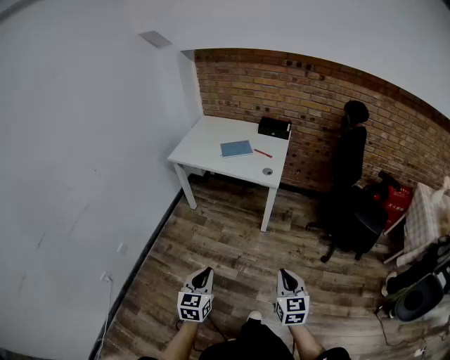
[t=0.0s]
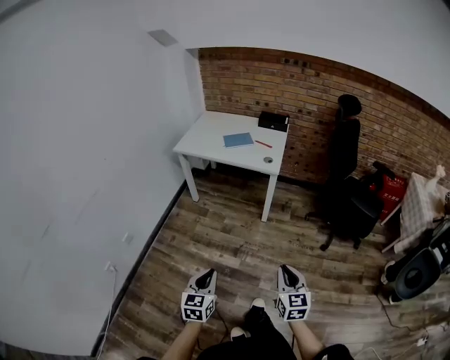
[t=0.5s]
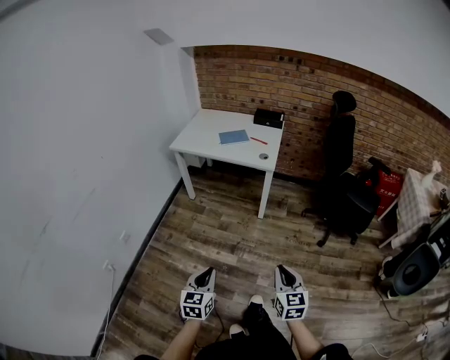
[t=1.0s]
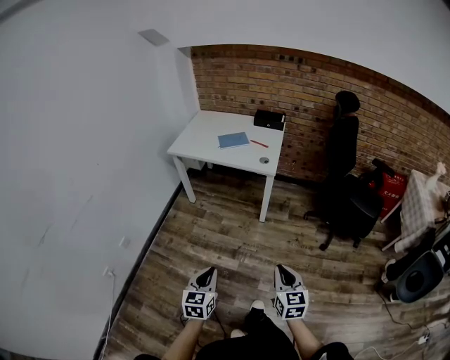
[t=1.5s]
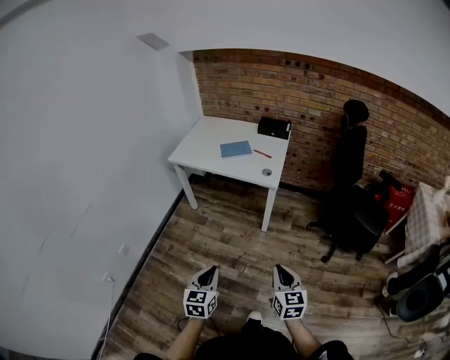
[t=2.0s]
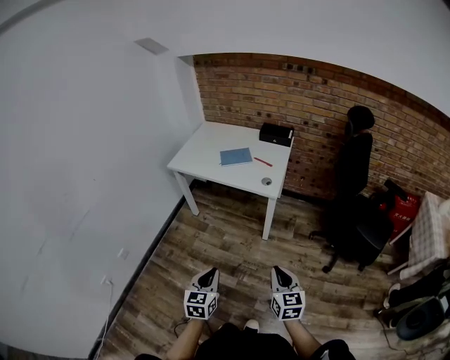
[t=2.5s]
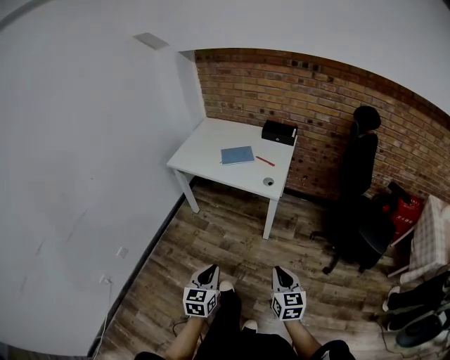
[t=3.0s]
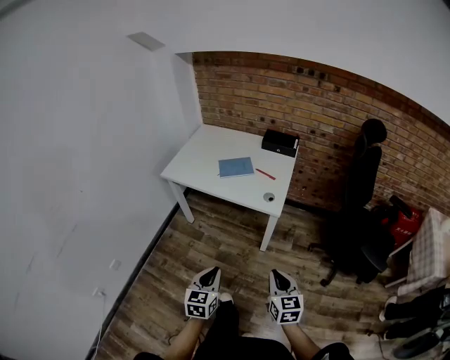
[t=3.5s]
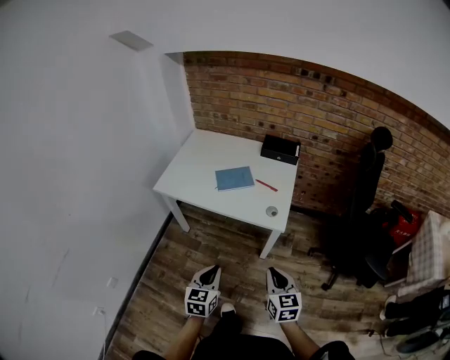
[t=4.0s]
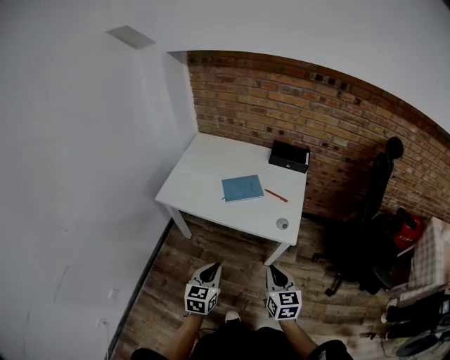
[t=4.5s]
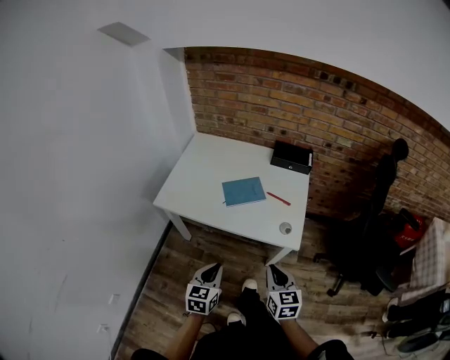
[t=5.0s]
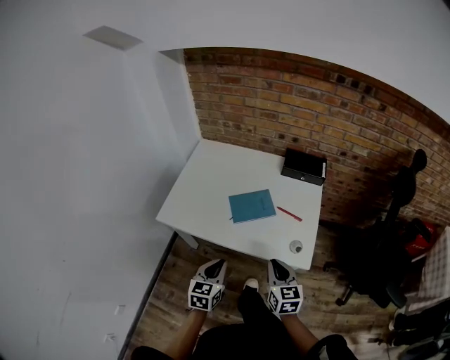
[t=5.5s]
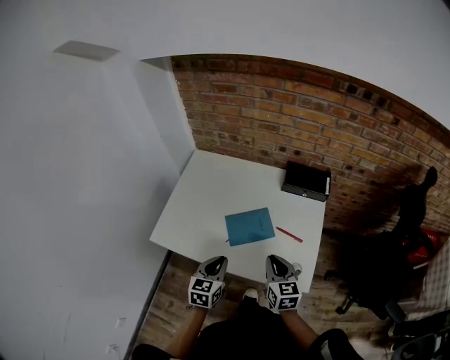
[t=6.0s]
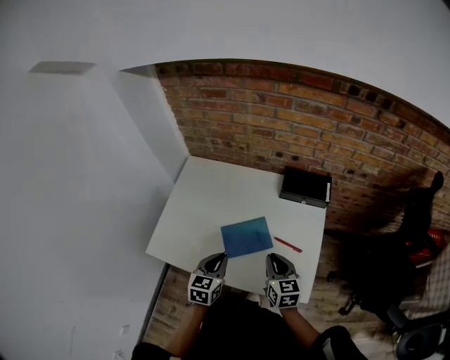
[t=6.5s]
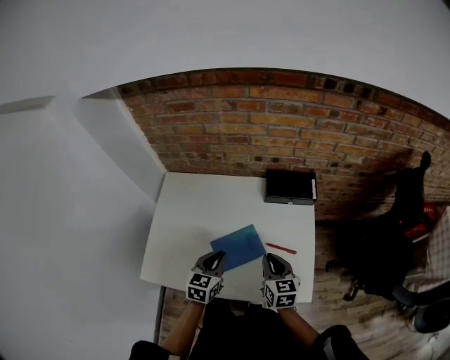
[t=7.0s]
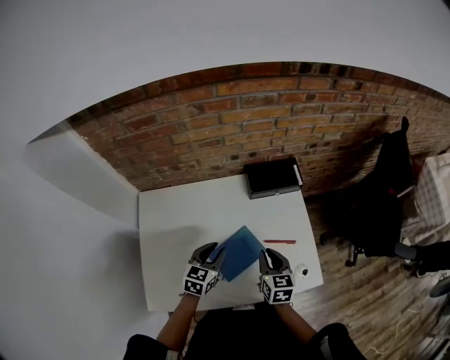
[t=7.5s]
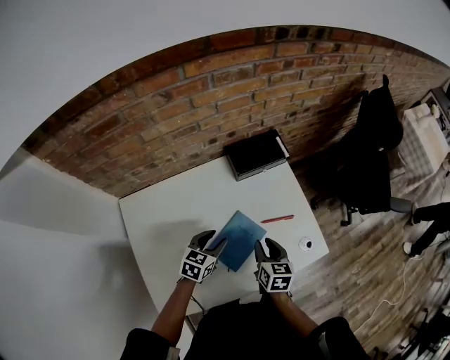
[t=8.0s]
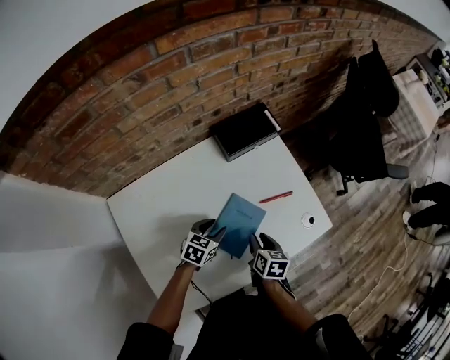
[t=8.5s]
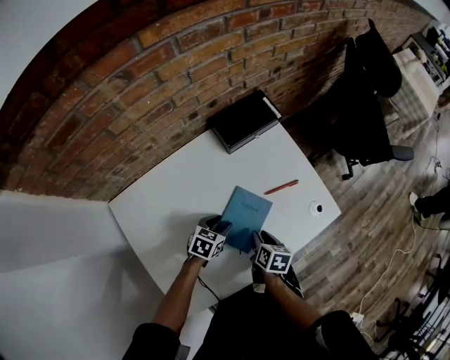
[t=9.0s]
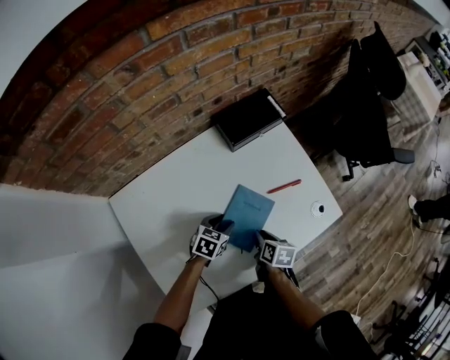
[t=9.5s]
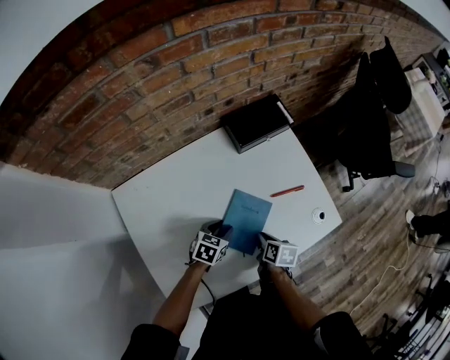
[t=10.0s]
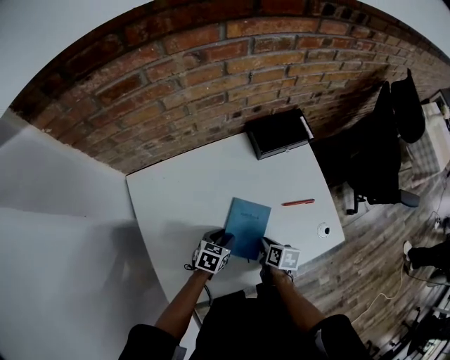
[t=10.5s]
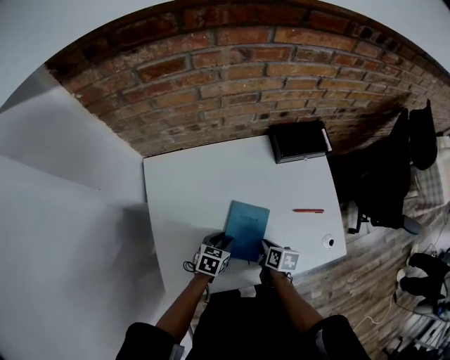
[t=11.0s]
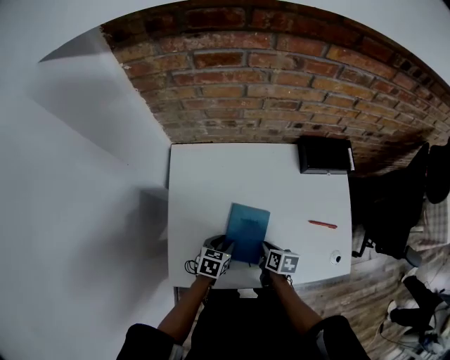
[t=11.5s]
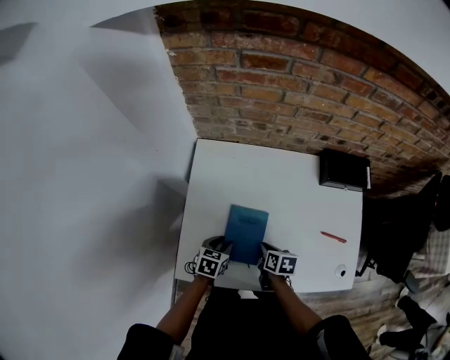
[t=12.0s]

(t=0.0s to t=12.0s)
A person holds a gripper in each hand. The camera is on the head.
t=0.0s - t=2.0s: The left gripper travels backward and back again, roughly 10 cm each way; the right gripper moves roughly 10 cm backward and comes back.
t=2.0s - t=4.0s: Both grippers move forward, about 30 cm.
t=4.0s - t=6.0s: The two grippers go approximately 40 cm forward.
t=6.0s - t=8.0s: The right gripper moves roughly 15 cm, changes its angle by about 50 degrees, and opens up. The left gripper shifts by roughly 25 cm, changes its angle by approximately 50 degrees, and opens.
t=8.0s - t=10.0s: The right gripper is displaced downward and backward by roughly 15 cm, and turns by approximately 30 degrees. Meanwhile the left gripper goes approximately 10 cm downward.
t=10.0s - t=12.0s: The right gripper shifts by roughly 15 cm, and changes its angle by some 40 degrees; the left gripper moves approximately 20 cm, and changes its angle by some 40 degrees.

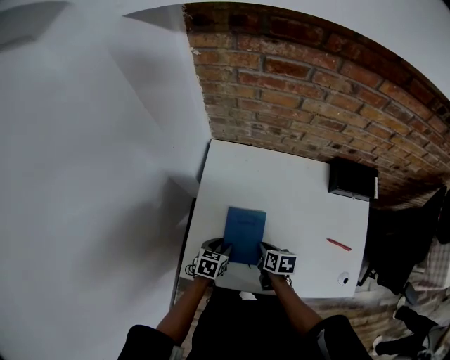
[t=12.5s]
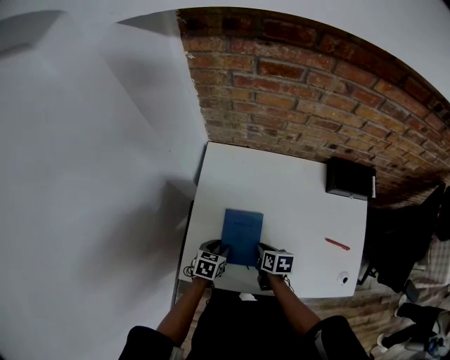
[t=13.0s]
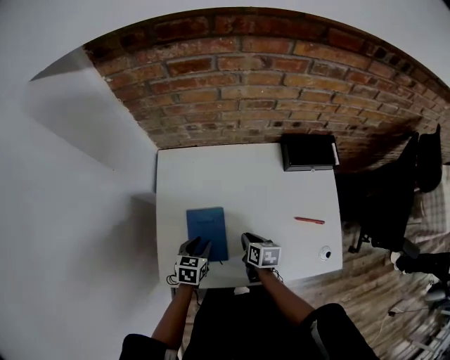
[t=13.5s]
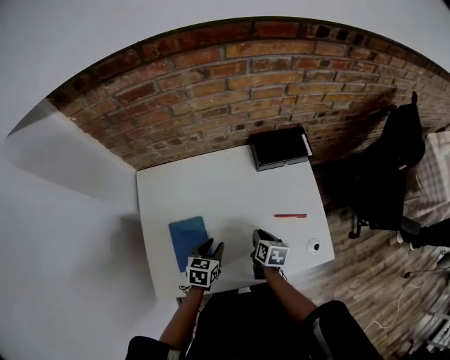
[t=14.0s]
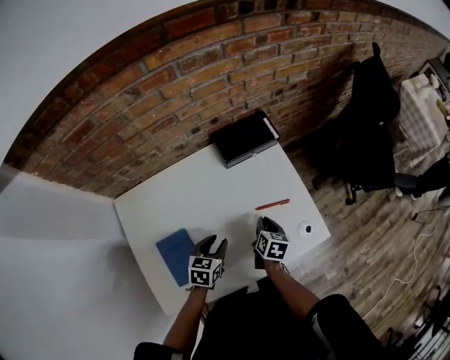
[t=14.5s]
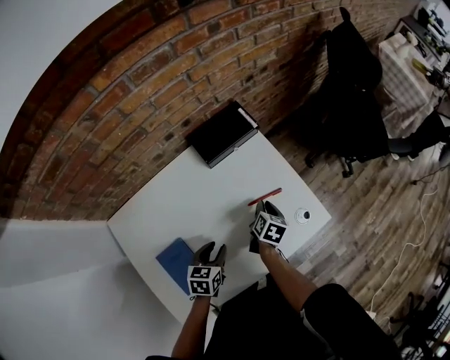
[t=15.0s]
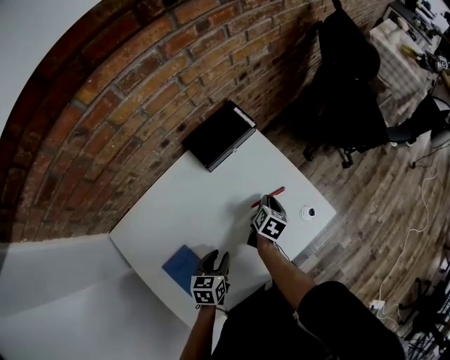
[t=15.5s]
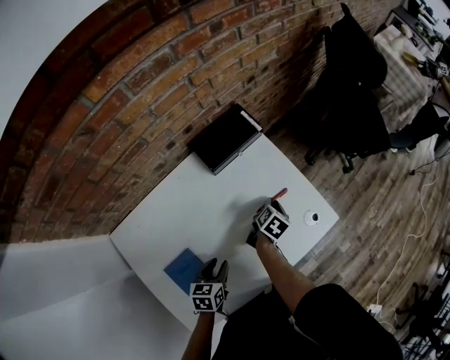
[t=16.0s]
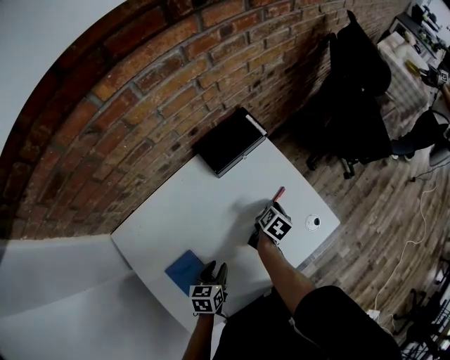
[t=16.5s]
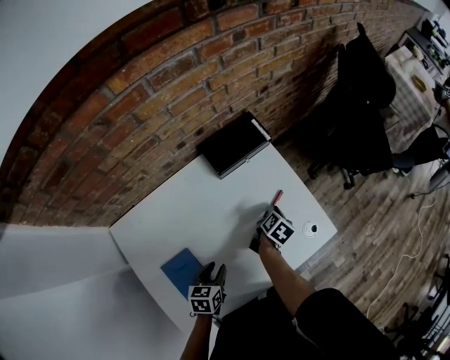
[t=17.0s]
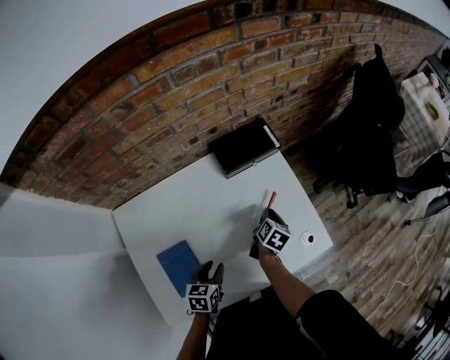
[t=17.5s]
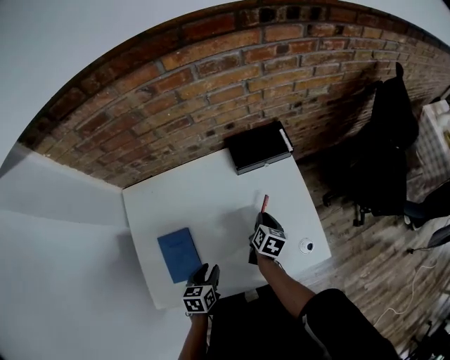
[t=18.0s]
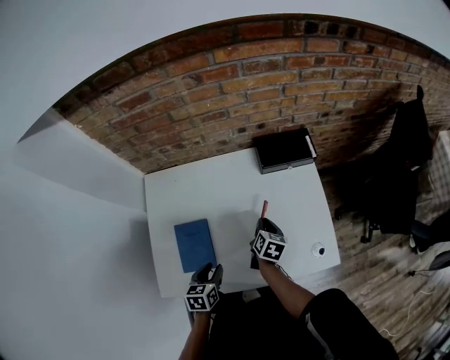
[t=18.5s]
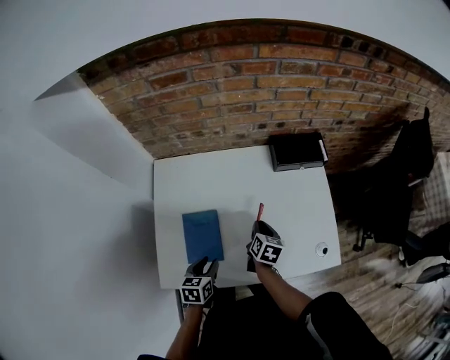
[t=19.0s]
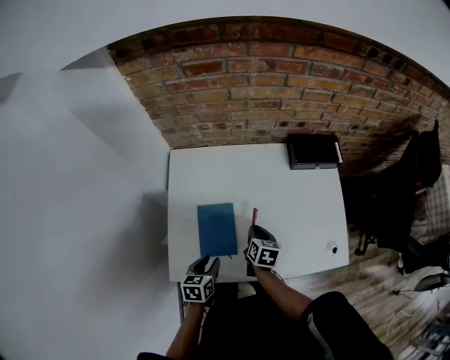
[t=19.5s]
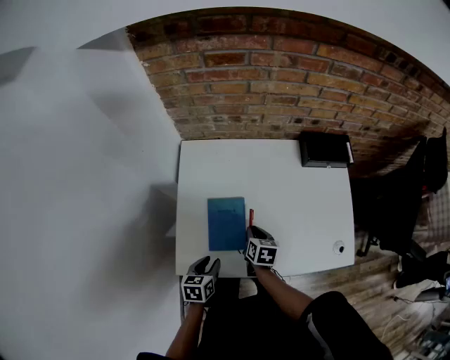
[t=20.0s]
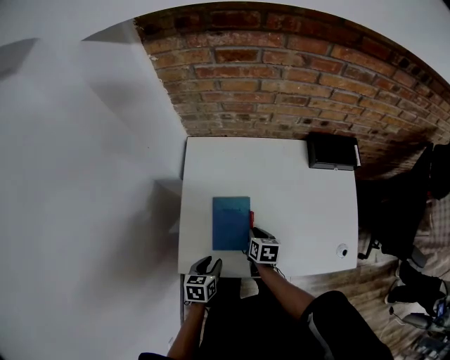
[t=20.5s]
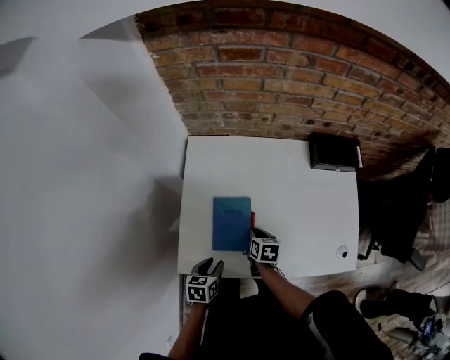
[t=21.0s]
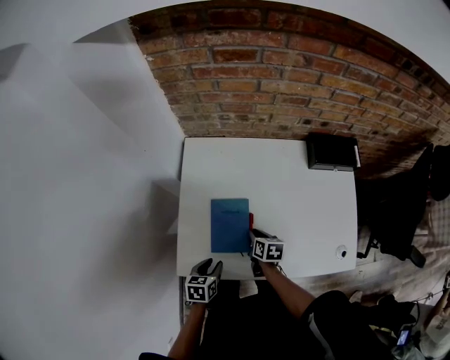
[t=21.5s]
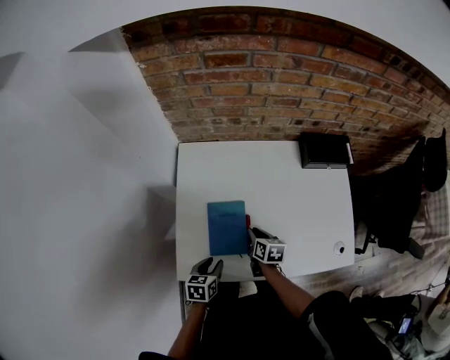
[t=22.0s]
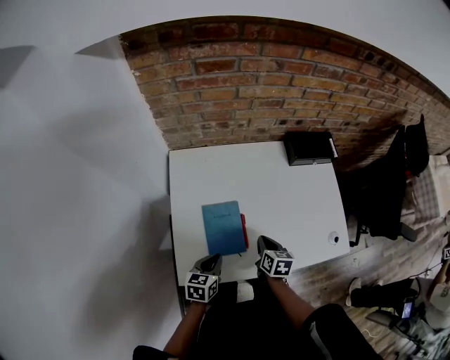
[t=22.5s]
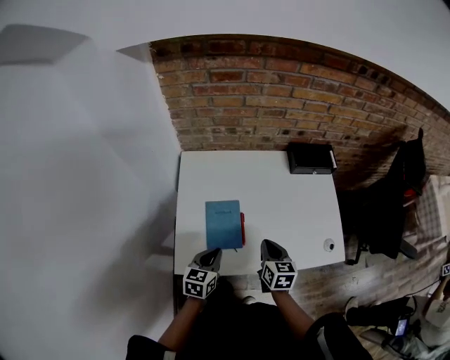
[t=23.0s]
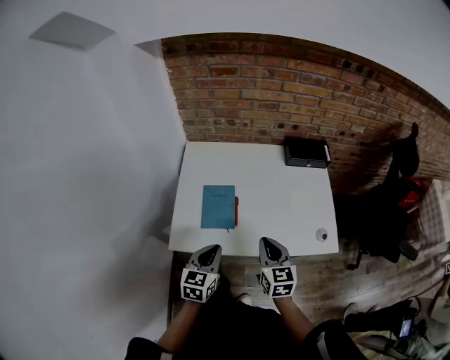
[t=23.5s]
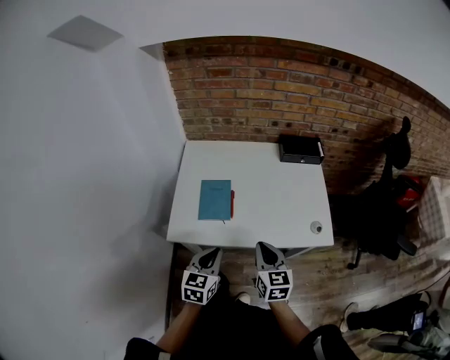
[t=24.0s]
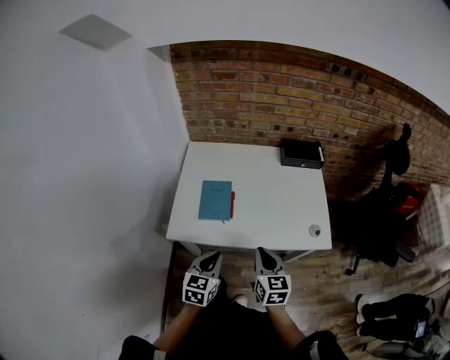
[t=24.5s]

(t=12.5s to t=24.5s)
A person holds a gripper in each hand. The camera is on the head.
t=12.5s - t=14.5s: The left gripper ends up approximately 25 cm from where it was, and turns by roughly 30 degrees. The right gripper ends up about 30 cm from where it was, and turns by about 50 degrees.
t=14.5s - t=16.5s: The left gripper ends up roughly 5 cm from where it was; the right gripper travels forward by approximately 10 cm, and swivels about 40 degrees.
t=16.5s - t=18.5s: The right gripper changes place by approximately 15 cm, and swivels roughly 50 degrees; the left gripper changes place by about 10 cm, and swivels about 30 degrees.
t=18.5s - t=20.5s: Both grippers travel together to the left and backward, approximately 20 cm. The right gripper changes its angle by about 30 degrees.
t=20.5s - t=22.5s: The left gripper shifts by some 5 cm, and closes its fingers, while the right gripper shifts roughly 5 cm to the right.
t=22.5s - t=24.5s: The left gripper is displaced backward, upward and to the right by about 25 cm, and rotates some 20 degrees; the right gripper goes some 25 cm backward and upward, and rotates about 30 degrees.

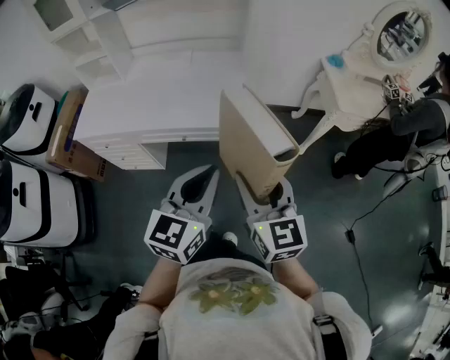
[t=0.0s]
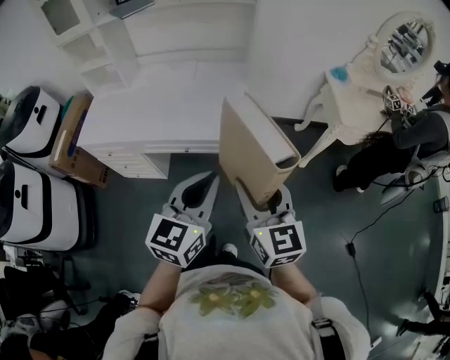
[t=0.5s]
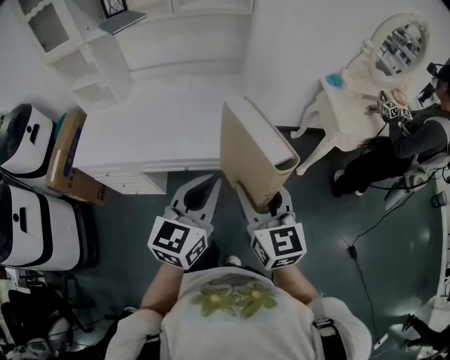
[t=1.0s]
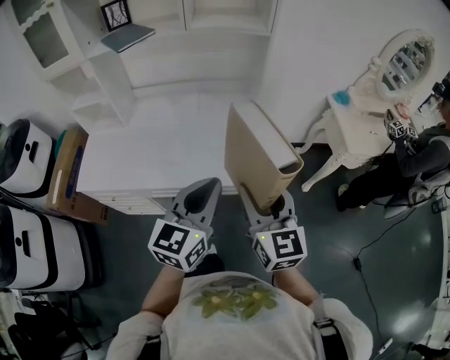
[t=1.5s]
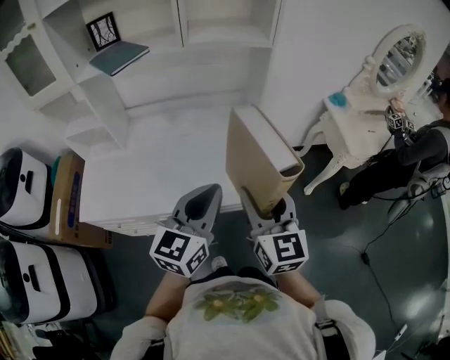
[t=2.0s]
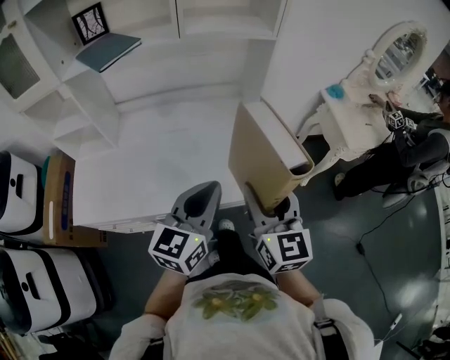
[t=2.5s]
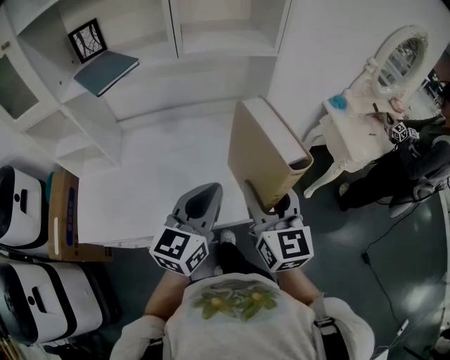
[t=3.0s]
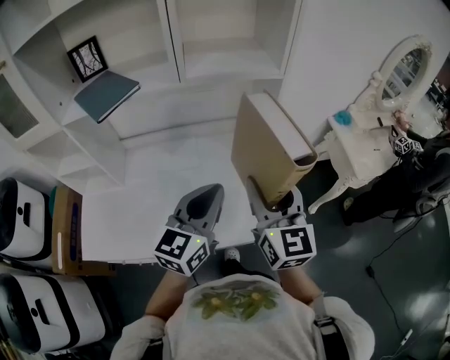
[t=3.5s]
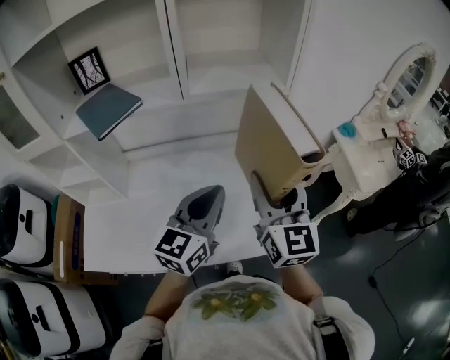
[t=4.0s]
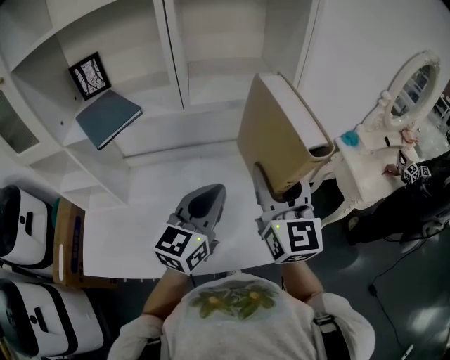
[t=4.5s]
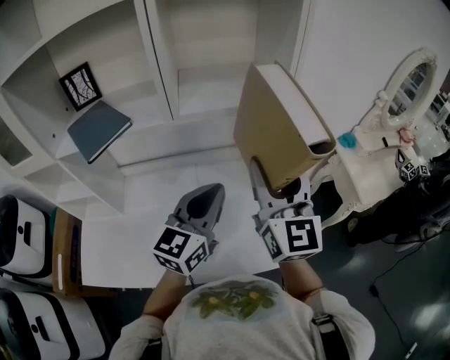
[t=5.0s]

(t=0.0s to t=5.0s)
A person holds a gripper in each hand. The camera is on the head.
t=0.0s - t=2.5s: Both grippers move forward and to the left, some 30 cm.
t=2.5s - t=5.0s: The right gripper is displaced forward and upward by about 30 cm, and swivels approximately 20 degrees, while the left gripper heads forward, covering about 25 cm.
